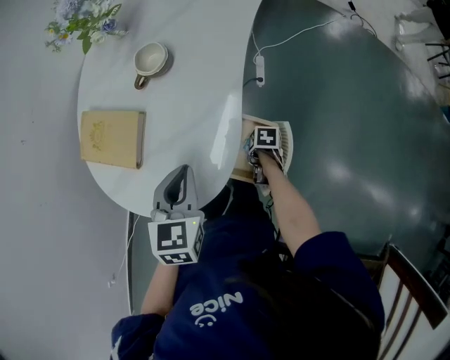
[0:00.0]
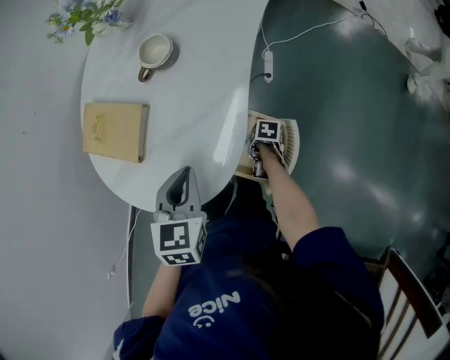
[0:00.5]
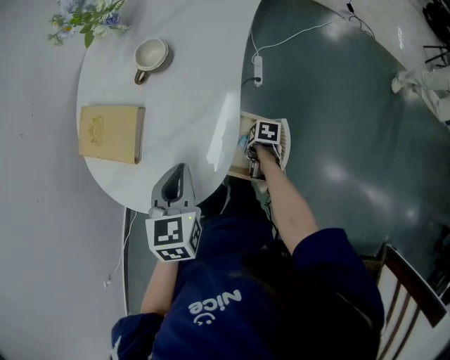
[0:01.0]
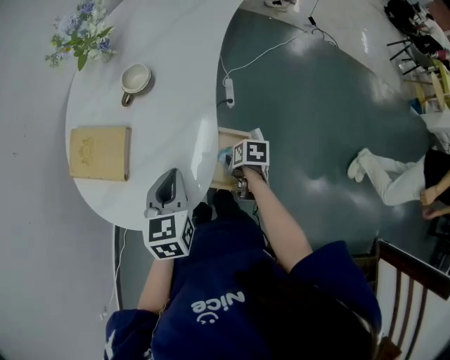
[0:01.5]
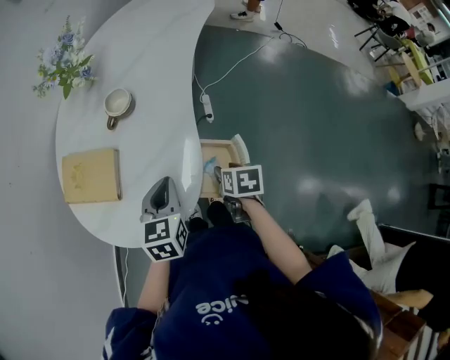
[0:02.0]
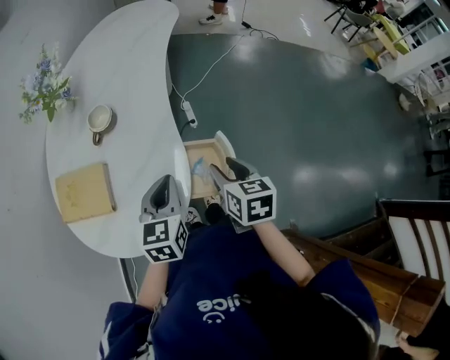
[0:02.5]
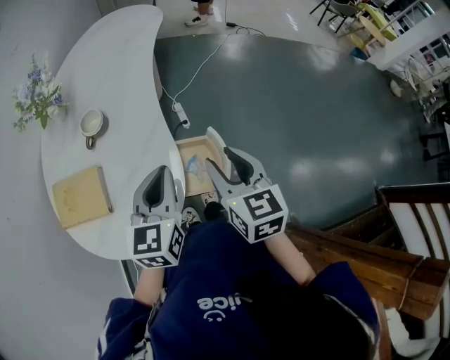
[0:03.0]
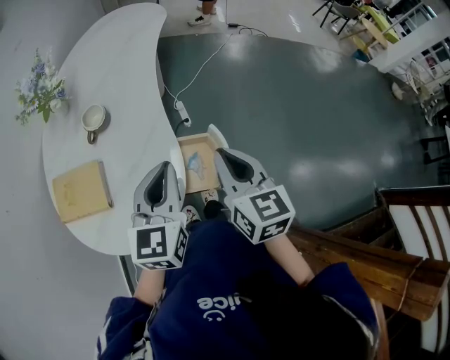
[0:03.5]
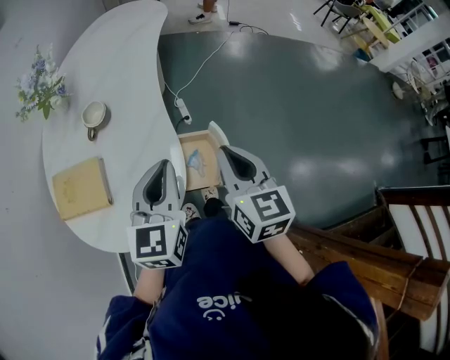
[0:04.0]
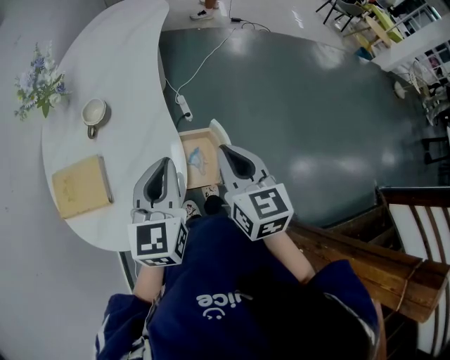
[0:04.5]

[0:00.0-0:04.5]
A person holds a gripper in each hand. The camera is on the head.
0:00.0 to 0:02.0: The right gripper heads upward, covering some 20 cm, turns by approximately 30 degrees, and opens.
0:02.0 to 0:04.5: The left gripper is displaced upward and to the right by roughly 15 cm, and swivels approximately 20 degrees. Meanwhile the right gripper travels upward by approximately 20 cm, points its fingers some 40 degrees further upward, and closes up.

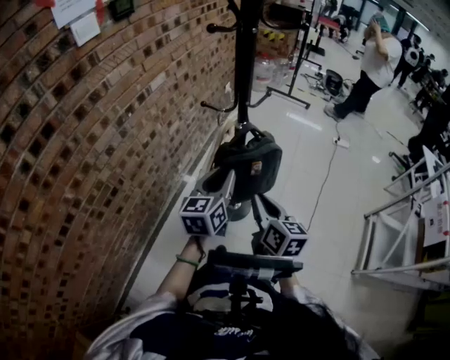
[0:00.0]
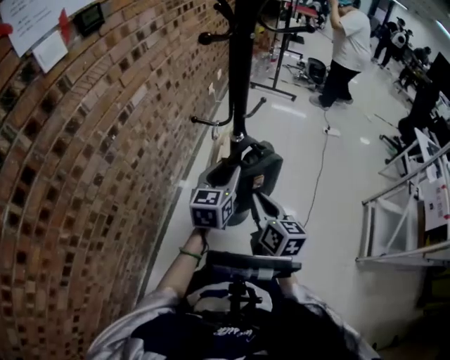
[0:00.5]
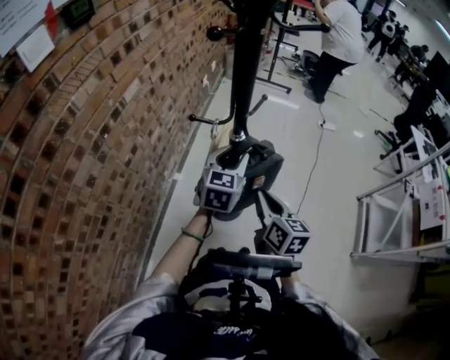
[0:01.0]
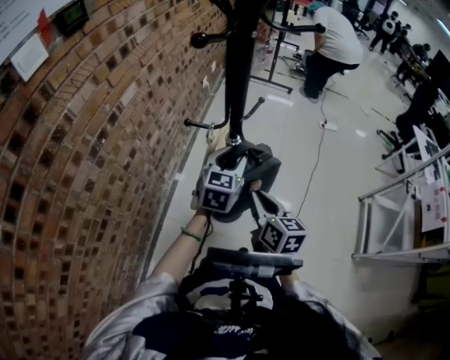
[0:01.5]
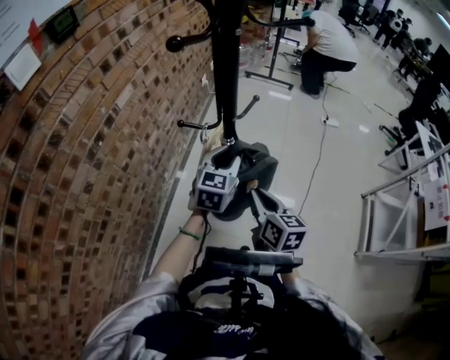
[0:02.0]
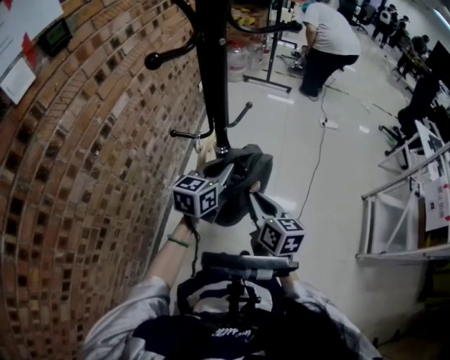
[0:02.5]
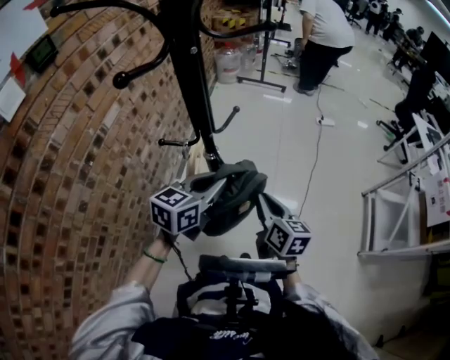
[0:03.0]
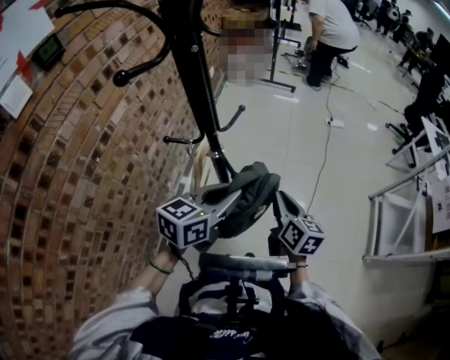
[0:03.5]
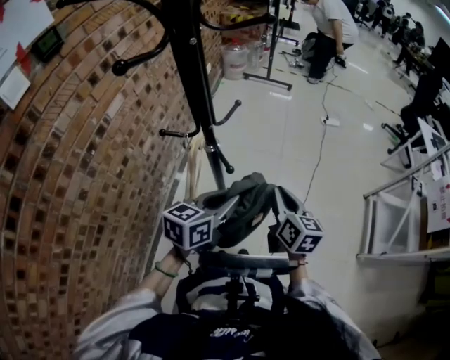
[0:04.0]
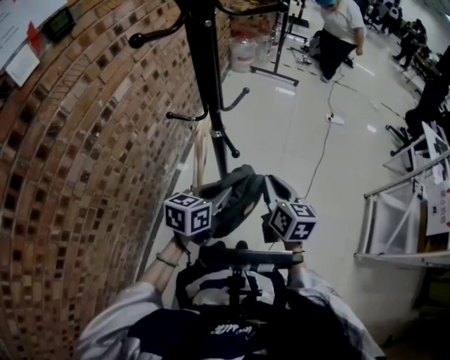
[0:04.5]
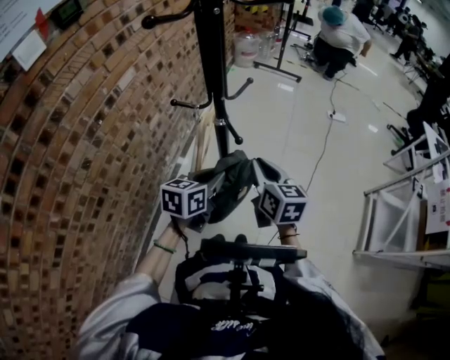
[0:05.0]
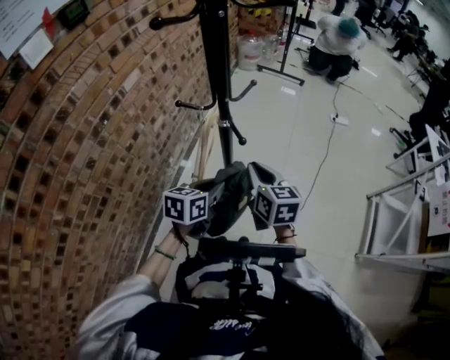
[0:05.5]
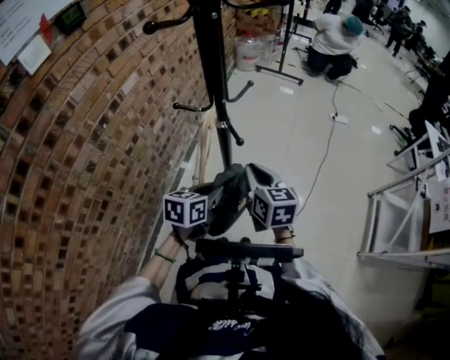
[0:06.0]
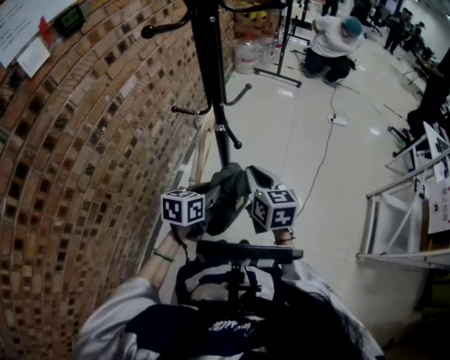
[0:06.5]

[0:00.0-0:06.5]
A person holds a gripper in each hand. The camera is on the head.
0:00.0 to 0:02.0: The left gripper moves forward, about 15 cm, and rotates some 20 degrees. The right gripper is displaced forward by roughly 10 cm.
0:02.0 to 0:04.5: The left gripper moves backward, about 10 cm, and changes its angle by approximately 30 degrees. The right gripper goes about 5 cm to the right.
0:04.5 to 0:06.5: The right gripper shifts about 5 cm to the left; the left gripper ends up approximately 5 cm from where it was.

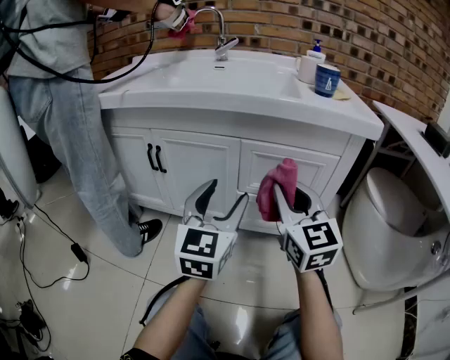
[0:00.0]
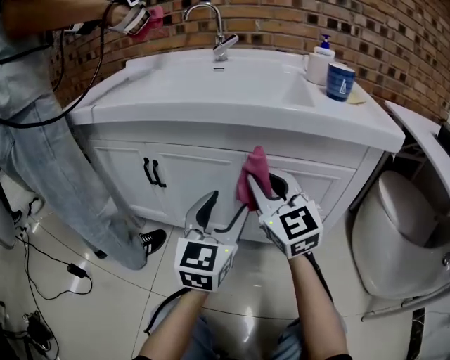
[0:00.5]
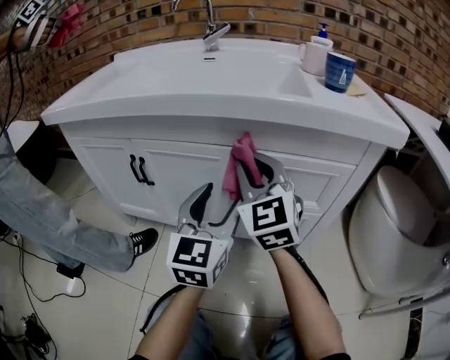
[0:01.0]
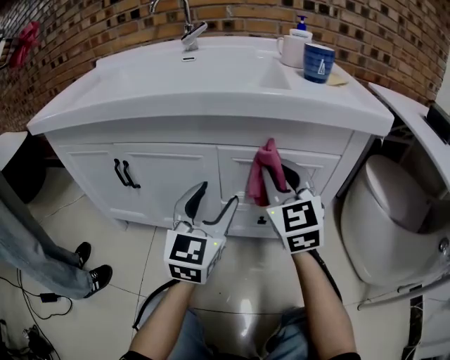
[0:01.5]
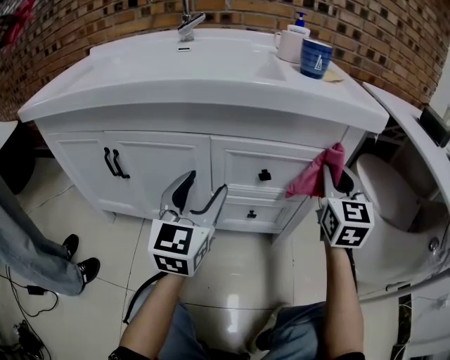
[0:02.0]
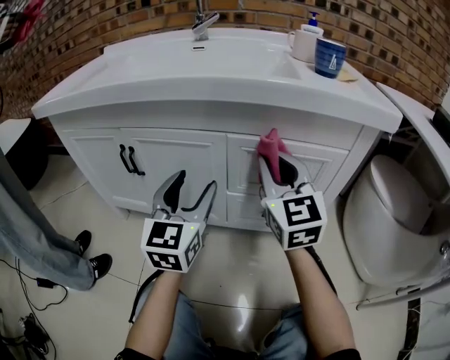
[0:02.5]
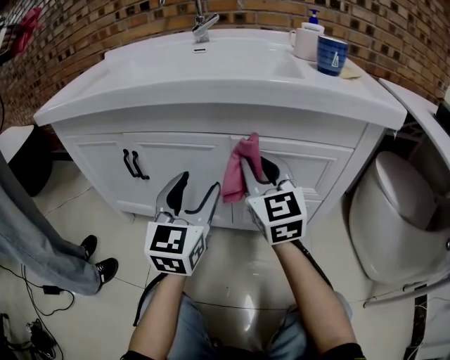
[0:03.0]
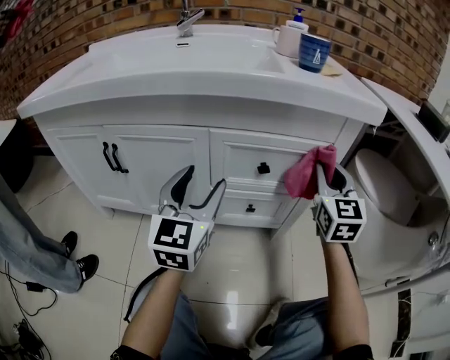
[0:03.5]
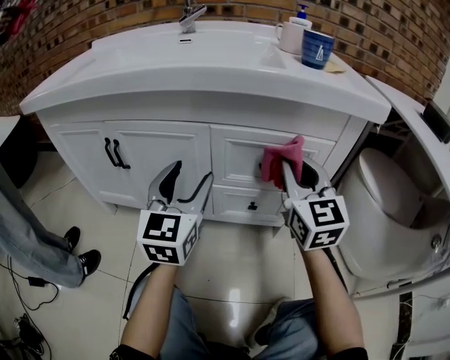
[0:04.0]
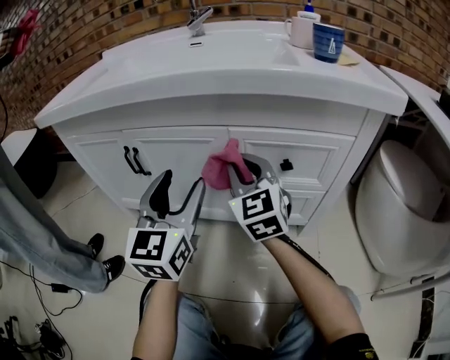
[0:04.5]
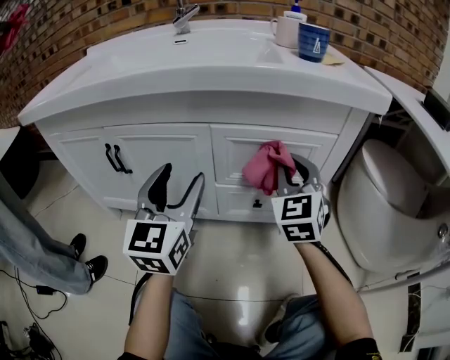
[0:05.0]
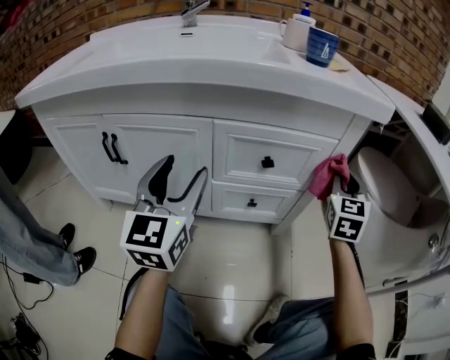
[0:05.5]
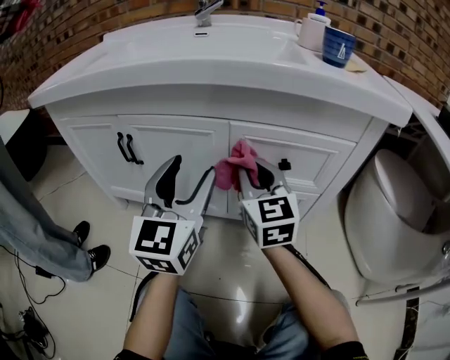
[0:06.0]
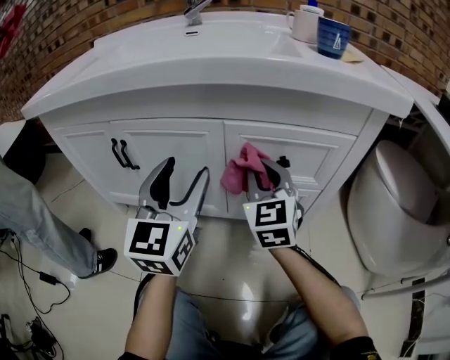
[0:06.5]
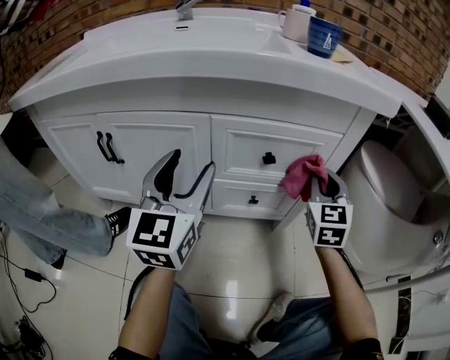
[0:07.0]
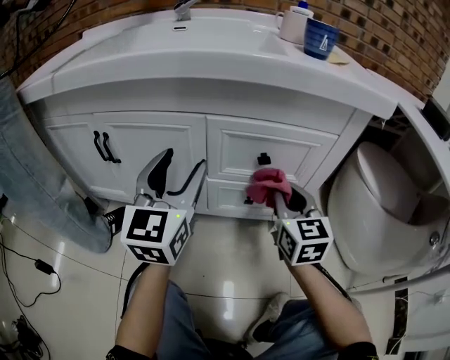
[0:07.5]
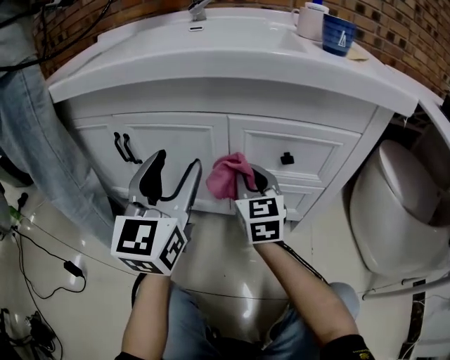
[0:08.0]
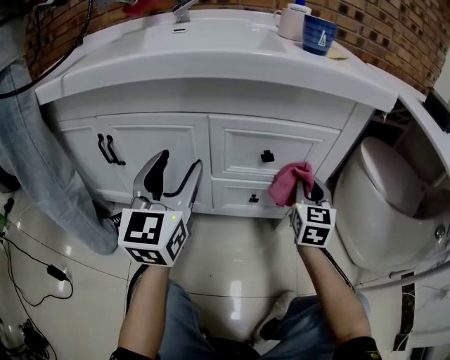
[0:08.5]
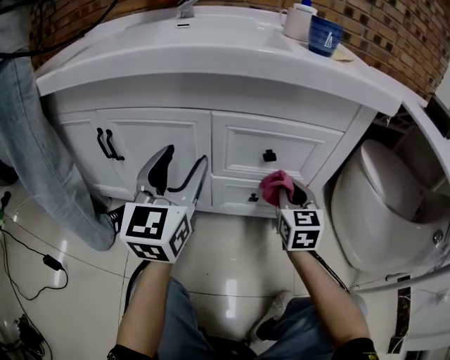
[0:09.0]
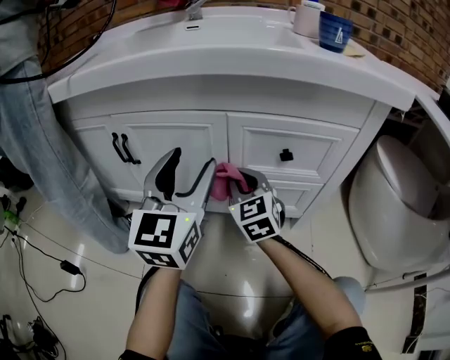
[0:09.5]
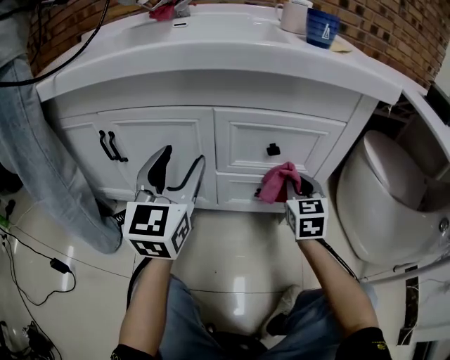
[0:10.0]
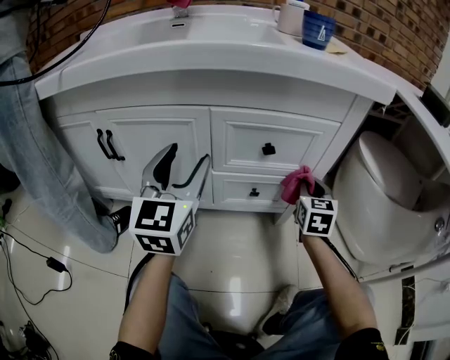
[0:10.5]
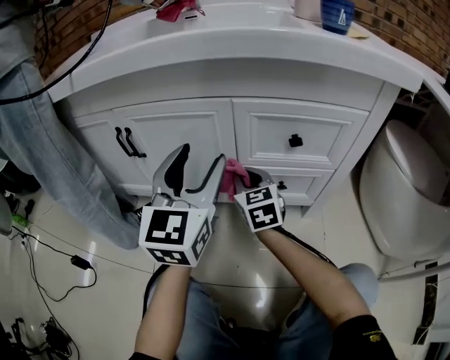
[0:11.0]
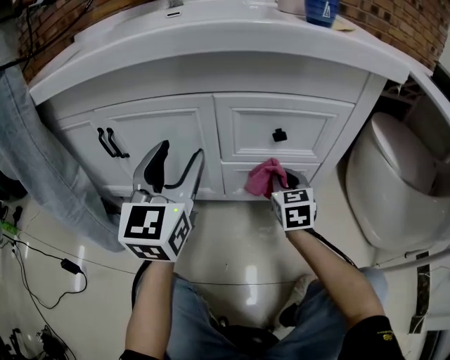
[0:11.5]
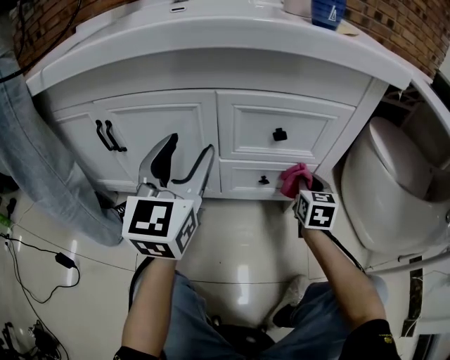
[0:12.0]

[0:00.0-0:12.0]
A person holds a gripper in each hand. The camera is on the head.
0:00.0 to 0:02.0: The right gripper moves to the right and forward, some 20 cm, and changes its angle by roughly 30 degrees. The left gripper shifts roughly 10 cm forward.
0:02.0 to 0:04.0: The right gripper goes left and right, approximately 25 cm each way, reversing 2 times.
0:04.0 to 0:06.0: The right gripper moves left and right over roughly 35 cm, changing direction 2 times.
0:06.0 to 0:08.0: The right gripper is displaced downward by approximately 5 cm, and moves roughly 25 cm to the right and comes back.
0:08.0 to 0:10.0: The right gripper swings left and right, some 25 cm each way, with 2 reversals.
0:10.0 to 0:12.0: The right gripper moves left and right over some 25 cm, changing direction 2 times.

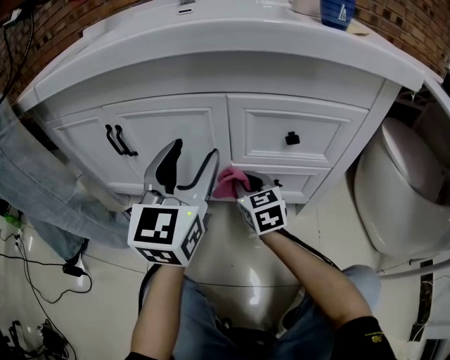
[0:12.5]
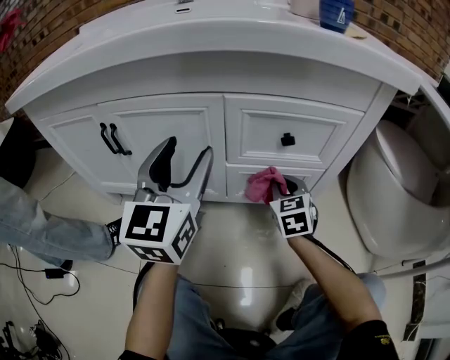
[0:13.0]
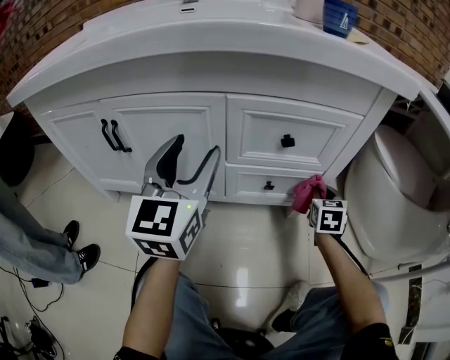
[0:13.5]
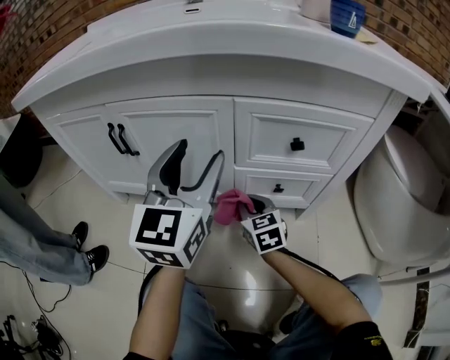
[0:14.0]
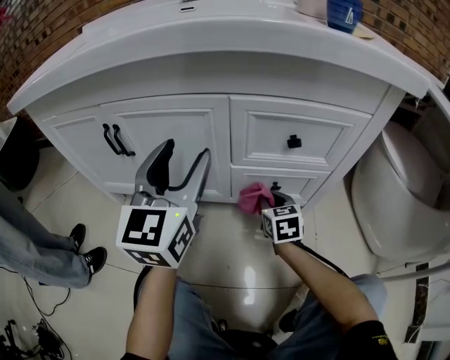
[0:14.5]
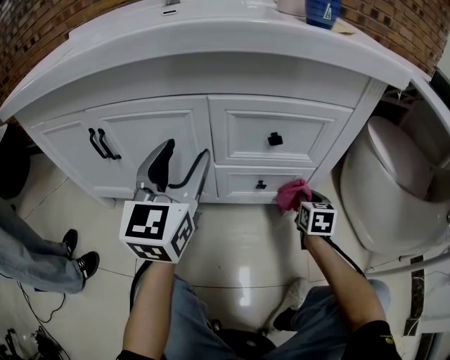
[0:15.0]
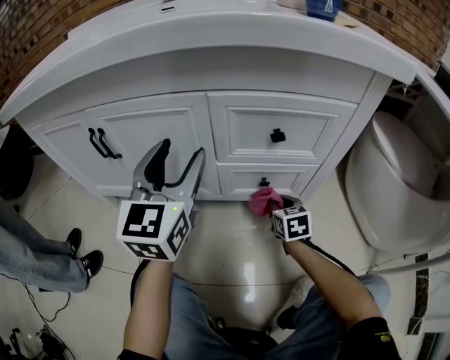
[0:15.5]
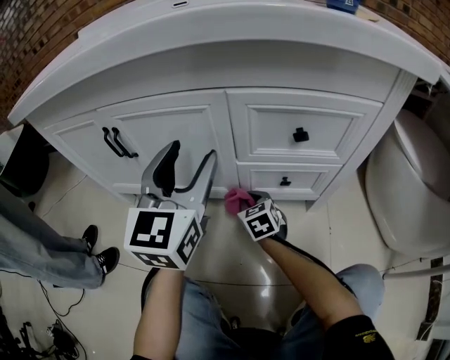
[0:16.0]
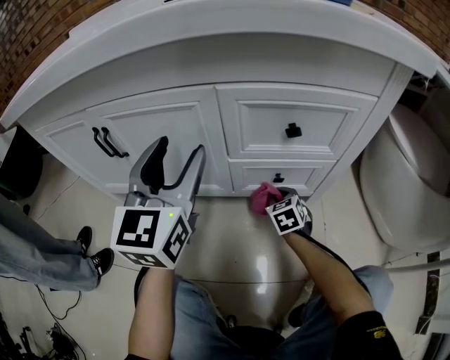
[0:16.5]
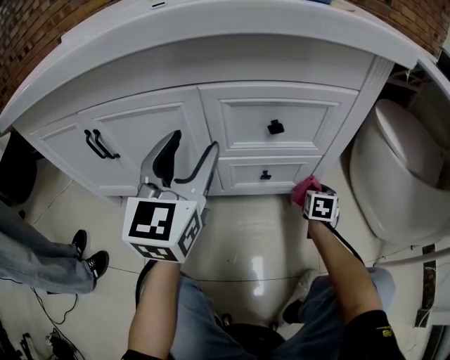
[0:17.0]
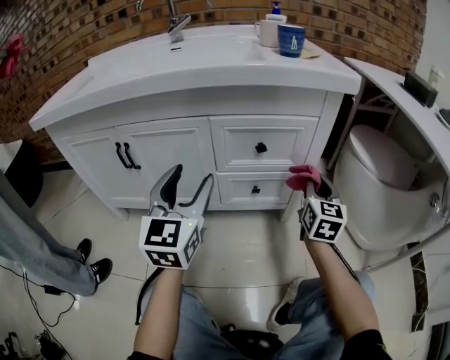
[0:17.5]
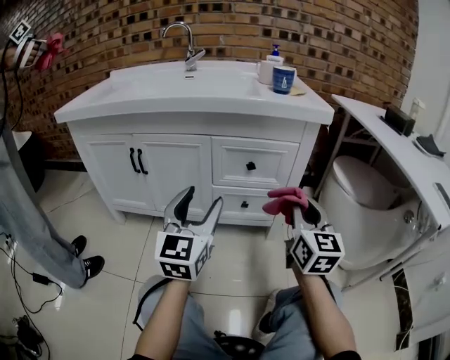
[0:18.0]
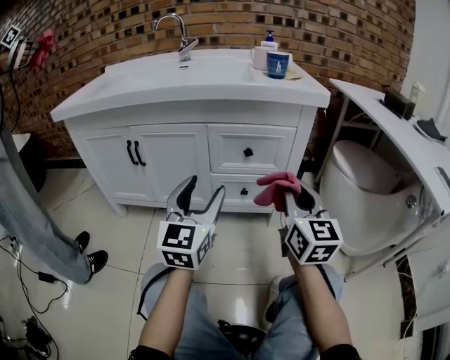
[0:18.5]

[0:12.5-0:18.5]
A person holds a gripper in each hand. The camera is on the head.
0:12.5 to 0:14.5: The right gripper goes left and right, approximately 30 cm each way, reversing 2 times.
0:14.5 to 0:16.5: The right gripper swings left and right, about 25 cm each way, with 2 reversals.
0:16.5 to 0:18.5: The left gripper is displaced backward and to the right by roughly 20 cm, while the right gripper moves upward and backward, approximately 50 cm, and tilts its fingers about 50 degrees upward.
